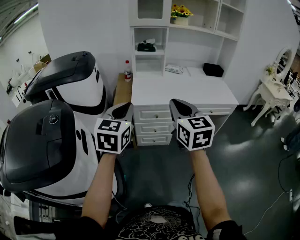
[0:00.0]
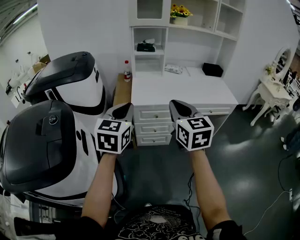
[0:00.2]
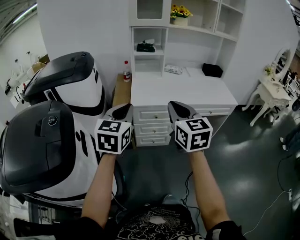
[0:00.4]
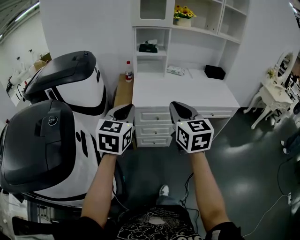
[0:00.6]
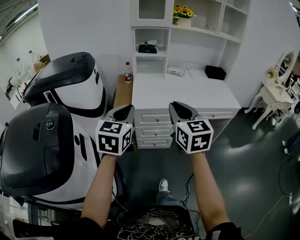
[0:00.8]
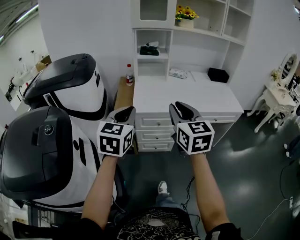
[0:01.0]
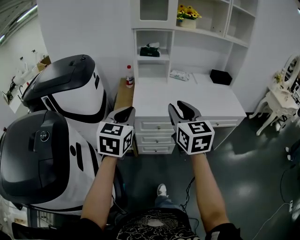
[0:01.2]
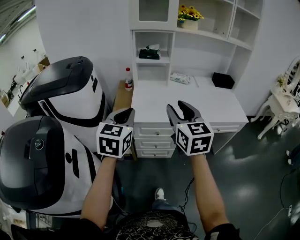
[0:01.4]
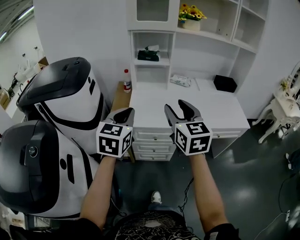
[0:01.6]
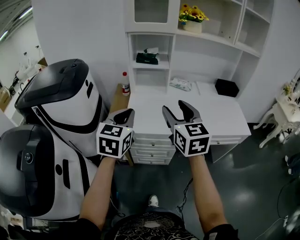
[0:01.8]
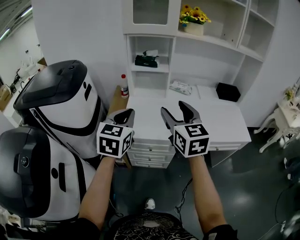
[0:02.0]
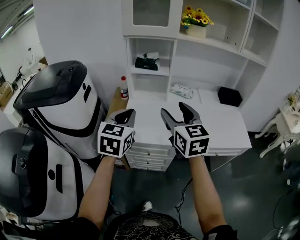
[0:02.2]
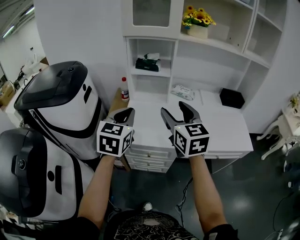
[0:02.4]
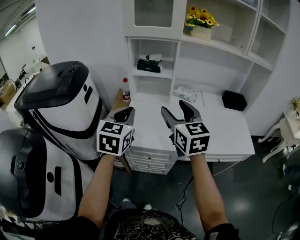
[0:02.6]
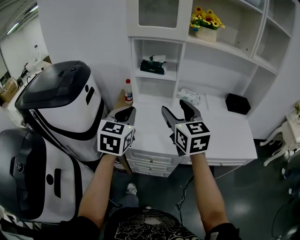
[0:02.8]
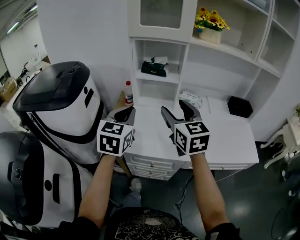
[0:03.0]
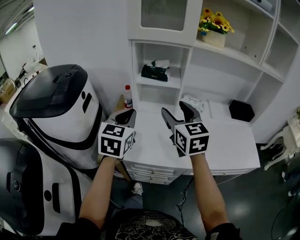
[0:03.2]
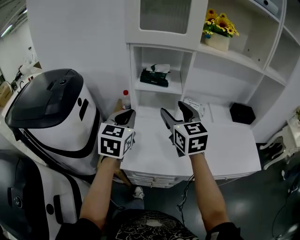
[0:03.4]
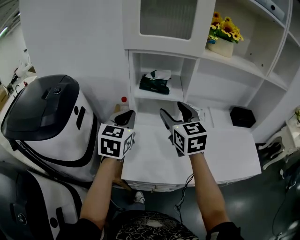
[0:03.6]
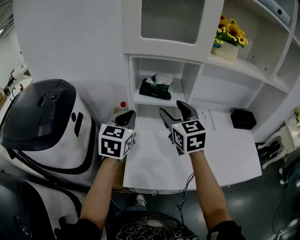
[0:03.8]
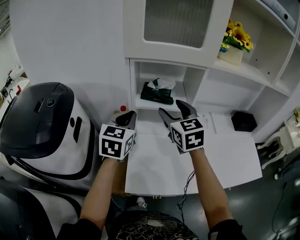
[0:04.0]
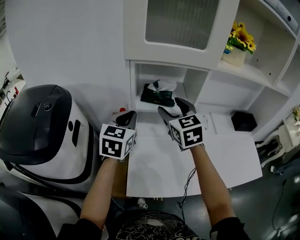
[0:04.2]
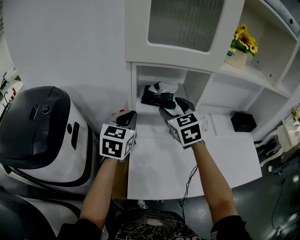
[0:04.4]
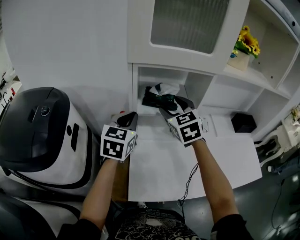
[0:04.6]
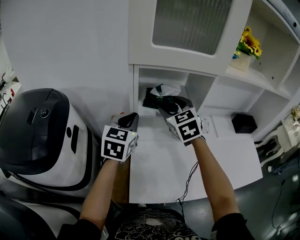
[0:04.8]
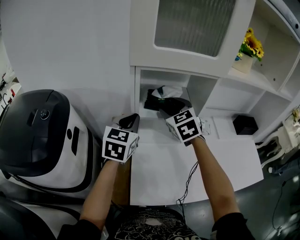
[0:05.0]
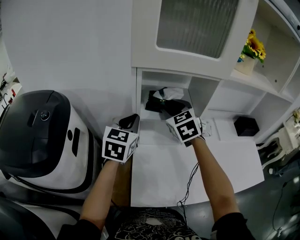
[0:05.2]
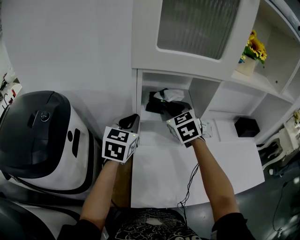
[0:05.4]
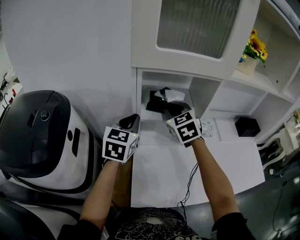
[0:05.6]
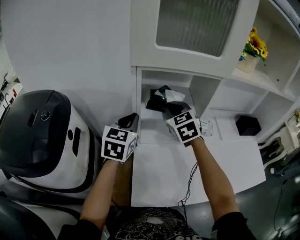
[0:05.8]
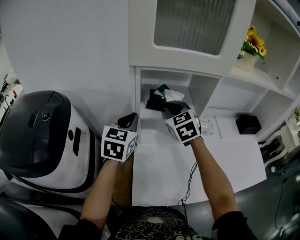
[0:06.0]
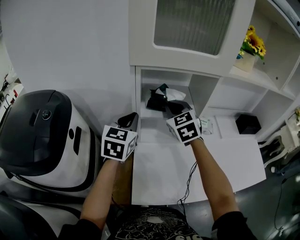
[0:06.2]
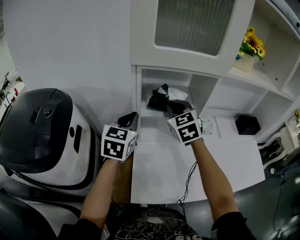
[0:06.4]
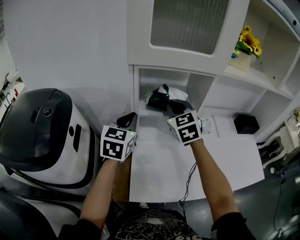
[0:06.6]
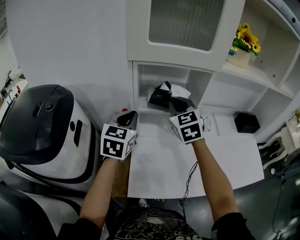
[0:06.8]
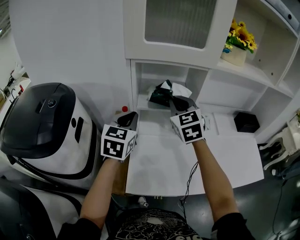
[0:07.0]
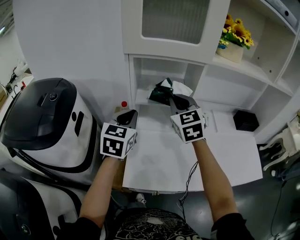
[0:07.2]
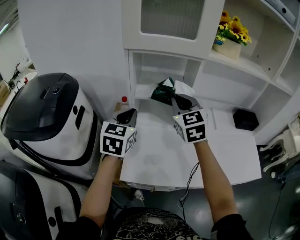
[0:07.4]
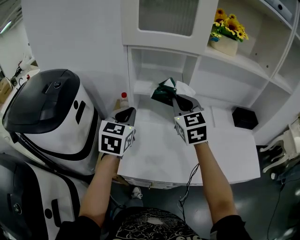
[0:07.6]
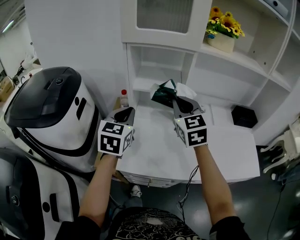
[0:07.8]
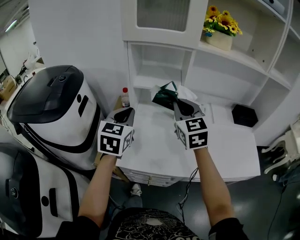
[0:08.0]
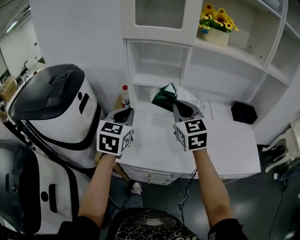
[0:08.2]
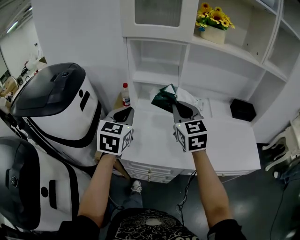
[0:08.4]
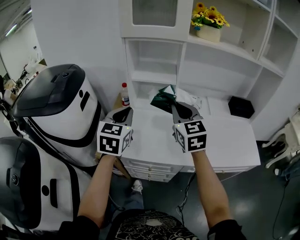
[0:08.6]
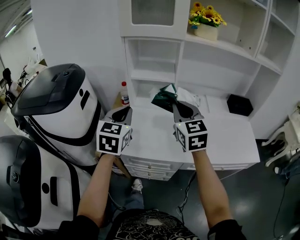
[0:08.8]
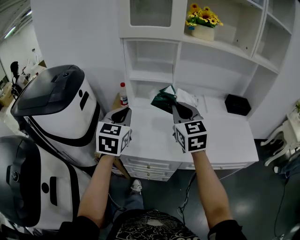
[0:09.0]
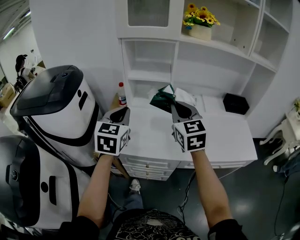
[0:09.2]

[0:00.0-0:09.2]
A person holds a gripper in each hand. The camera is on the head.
0:00.0 to 0:01.6: Both grippers move forward, about 20 cm. The right gripper opens its fingers.
0:01.6 to 0:03.0: The grippers both shift forward by some 20 cm.
0:03.0 to 0:04.6: Both grippers travel together forward, roughly 30 cm. The right gripper turns by some 20 degrees.
0:04.6 to 0:06.2: The right gripper closes.
0:06.2 to 0:07.6: The left gripper shifts some 15 cm backward; the right gripper shifts some 15 cm backward and to the right.
0:07.6 to 0:09.2: The grippers both shift backward by about 15 cm.

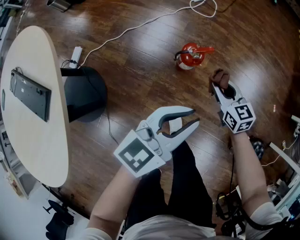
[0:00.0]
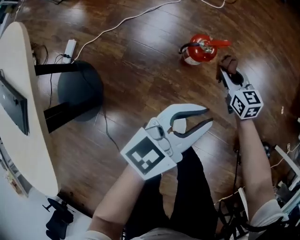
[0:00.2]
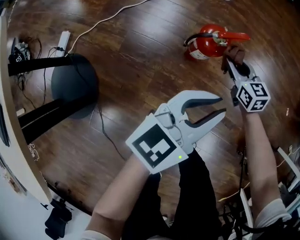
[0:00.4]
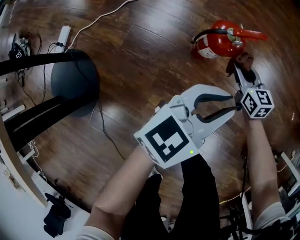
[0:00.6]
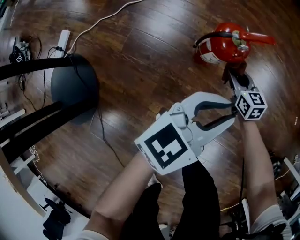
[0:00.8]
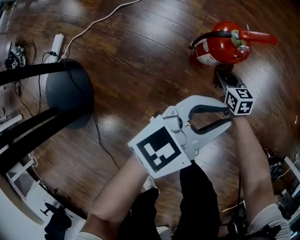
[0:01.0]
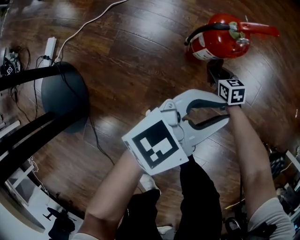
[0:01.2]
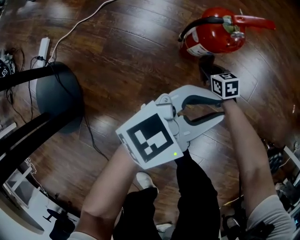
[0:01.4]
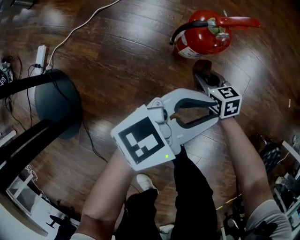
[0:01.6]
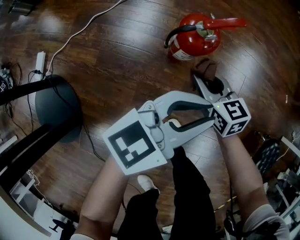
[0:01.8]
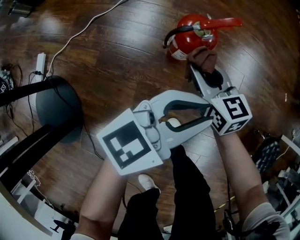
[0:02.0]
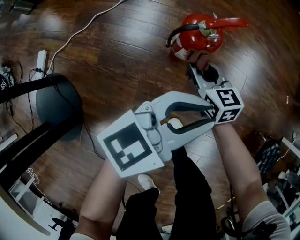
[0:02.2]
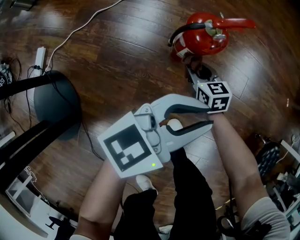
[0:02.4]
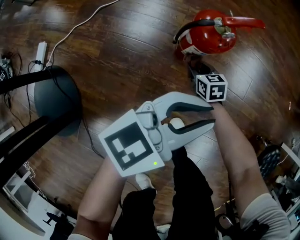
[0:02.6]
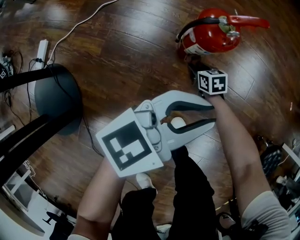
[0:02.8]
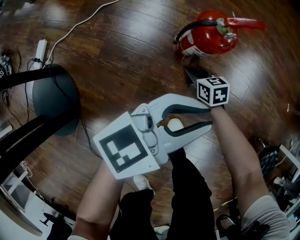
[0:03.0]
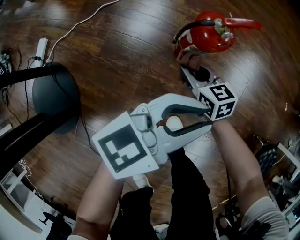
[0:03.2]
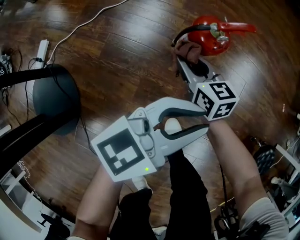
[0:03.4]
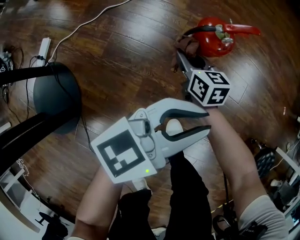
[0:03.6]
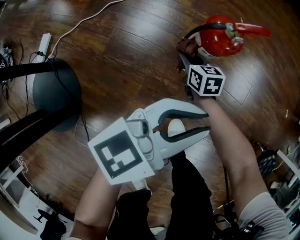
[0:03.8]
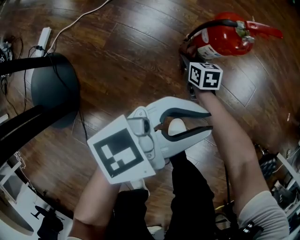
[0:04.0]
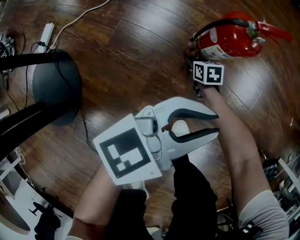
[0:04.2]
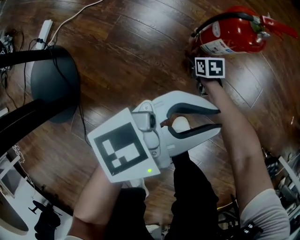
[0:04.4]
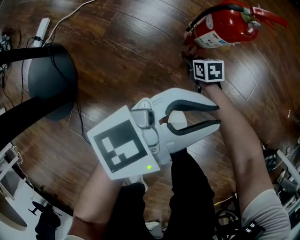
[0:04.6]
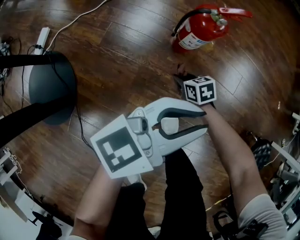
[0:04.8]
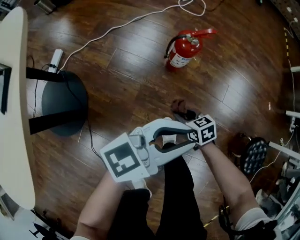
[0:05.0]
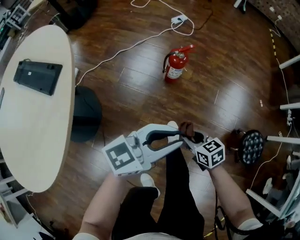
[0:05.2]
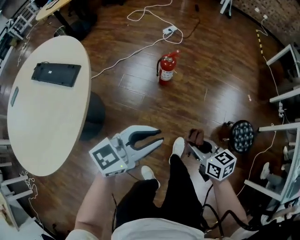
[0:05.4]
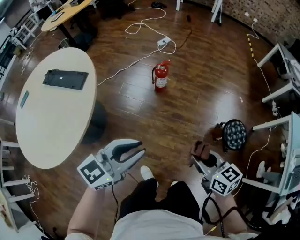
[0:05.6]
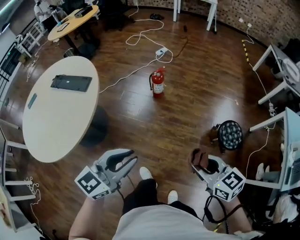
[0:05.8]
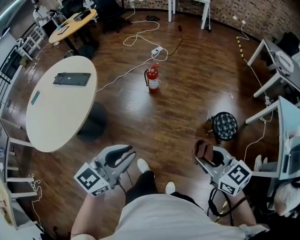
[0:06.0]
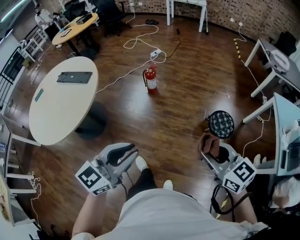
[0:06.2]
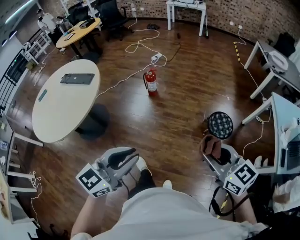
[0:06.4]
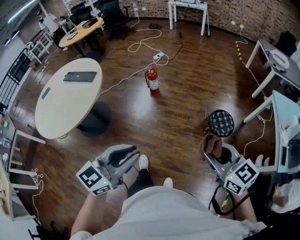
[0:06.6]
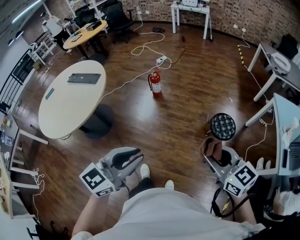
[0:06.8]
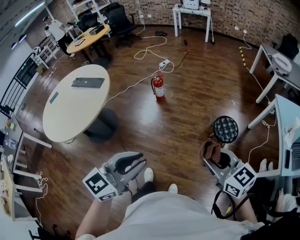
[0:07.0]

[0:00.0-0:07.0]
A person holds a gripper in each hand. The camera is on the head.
0:00.0 to 0:01.4: The left gripper goes about 25 cm downward; the right gripper heads downward, covering approximately 40 cm, and rotates roughly 20 degrees.
0:01.4 to 0:02.8: The right gripper goes upward and returns, approximately 25 cm each way.
0:02.8 to 0:04.2: The right gripper heads to the left, covering approximately 5 cm, and goes upward and returns, roughly 20 cm each way.
0:04.2 to 0:05.6: The right gripper goes some 70 cm upward, and changes its angle by some 30 degrees, while the left gripper is displaced upward by roughly 40 cm.
0:05.6 to 0:07.0: The right gripper is displaced backward, upward and to the right by about 35 cm, and turns by some 20 degrees, while the left gripper goes about 35 cm backward, to the right and upward.

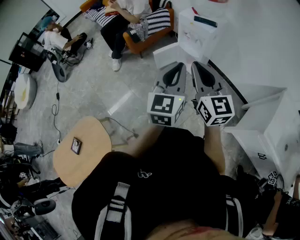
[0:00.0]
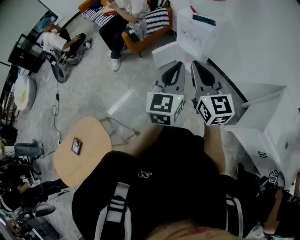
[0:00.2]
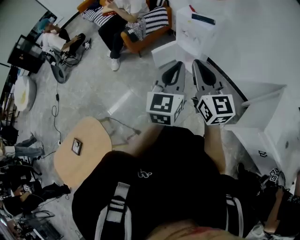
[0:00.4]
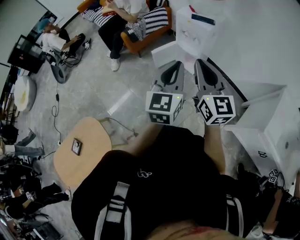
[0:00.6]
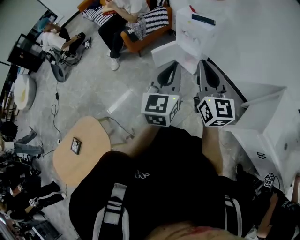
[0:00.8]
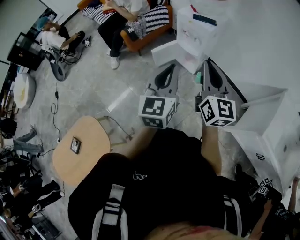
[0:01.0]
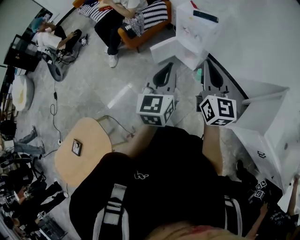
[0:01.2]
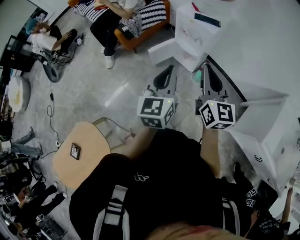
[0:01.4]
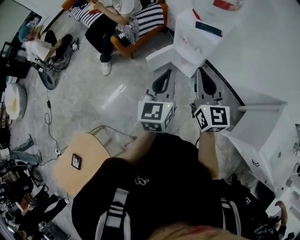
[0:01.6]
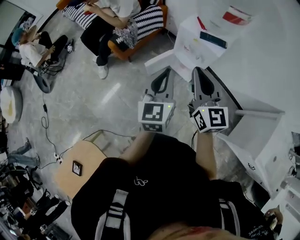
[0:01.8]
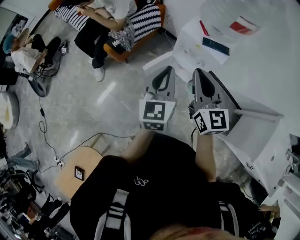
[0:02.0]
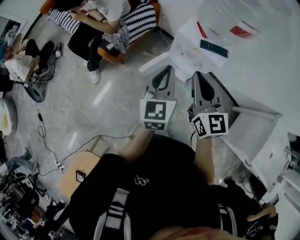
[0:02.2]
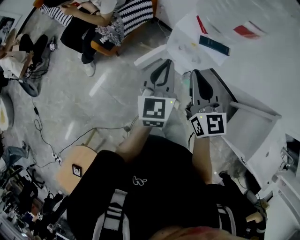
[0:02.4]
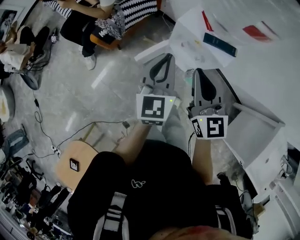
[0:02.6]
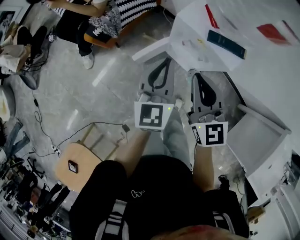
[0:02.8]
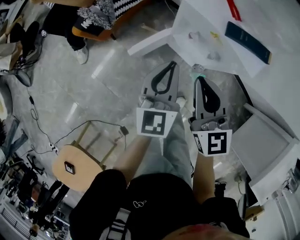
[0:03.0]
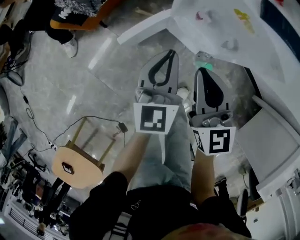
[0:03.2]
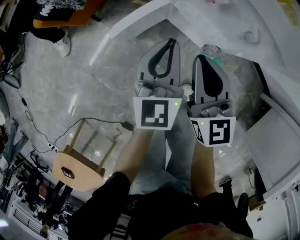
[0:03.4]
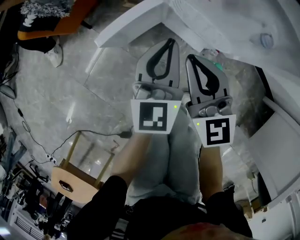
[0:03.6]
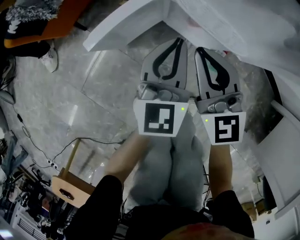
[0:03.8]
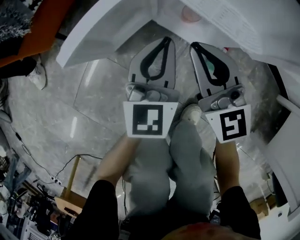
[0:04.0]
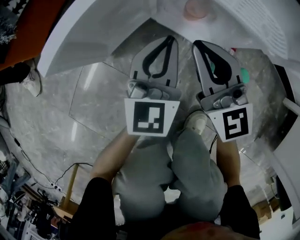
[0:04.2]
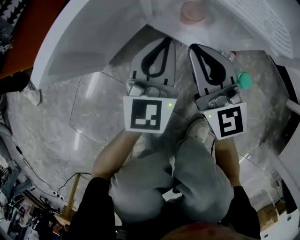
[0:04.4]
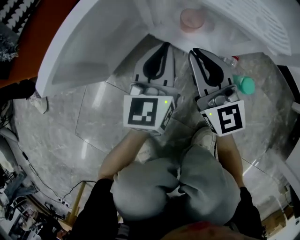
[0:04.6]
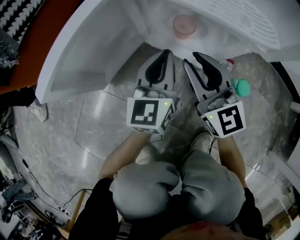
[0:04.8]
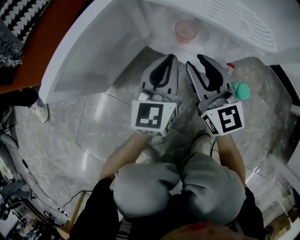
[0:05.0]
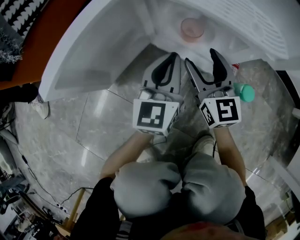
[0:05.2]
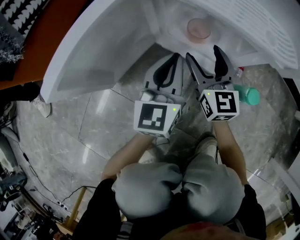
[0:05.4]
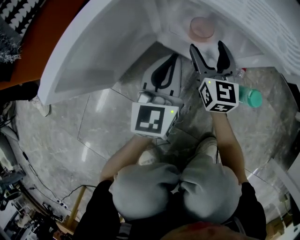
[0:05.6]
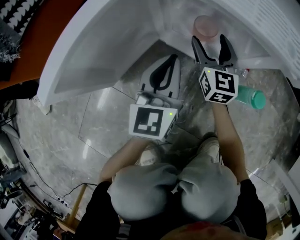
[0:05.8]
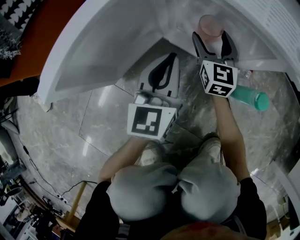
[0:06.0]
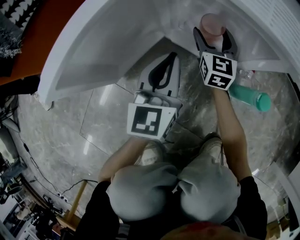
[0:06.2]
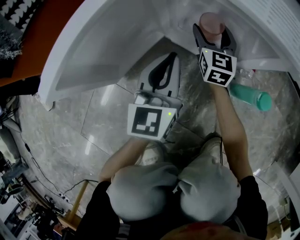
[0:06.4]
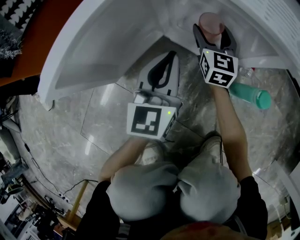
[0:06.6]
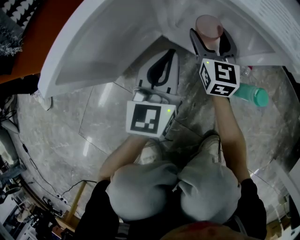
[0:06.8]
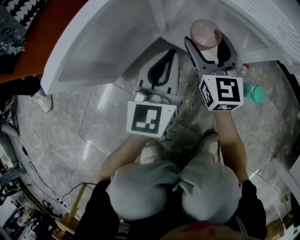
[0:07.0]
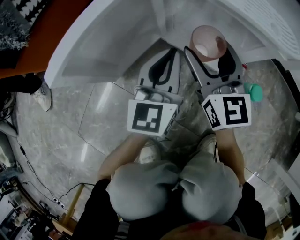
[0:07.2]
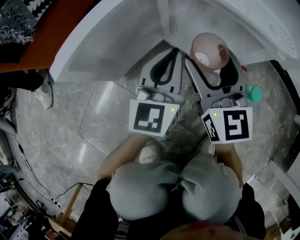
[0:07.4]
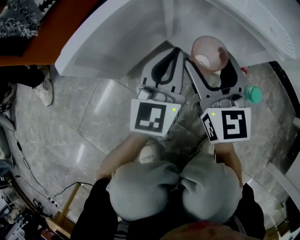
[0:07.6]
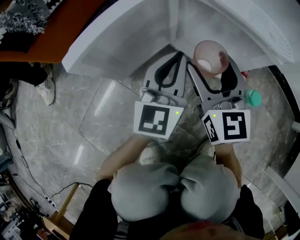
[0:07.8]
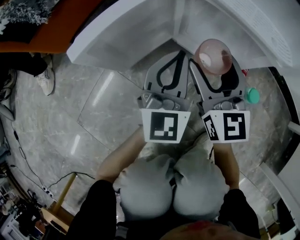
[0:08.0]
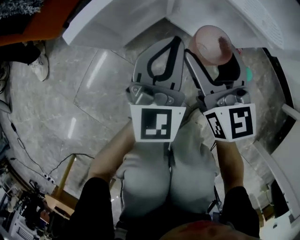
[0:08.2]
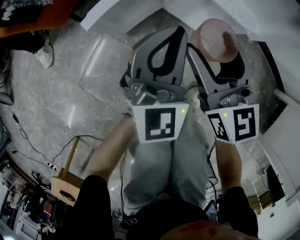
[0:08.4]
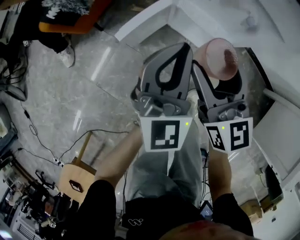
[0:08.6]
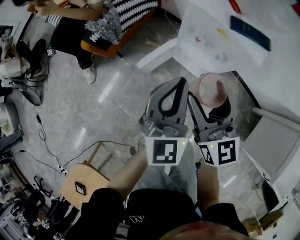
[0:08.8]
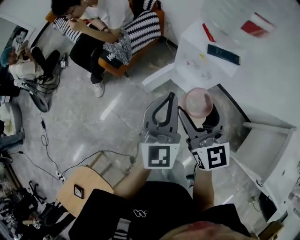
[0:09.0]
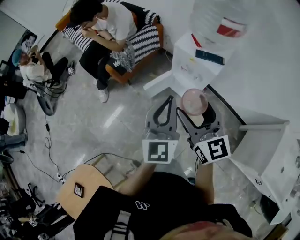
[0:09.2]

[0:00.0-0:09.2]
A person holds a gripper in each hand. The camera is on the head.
0:00.0 to 0:01.6: Both grippers travel together forward, approximately 20 cm.
0:01.6 to 0:03.0: The two grippers go roughly 35 cm forward and downward.
0:03.0 to 0:04.6: The grippers both shift downward by roughly 50 cm.
0:04.6 to 0:06.2: The right gripper is displaced forward and downward by roughly 20 cm, swivels some 30 degrees, and opens up; the left gripper shifts by approximately 5 cm.
0:06.2 to 0:07.6: The left gripper travels upward by about 5 cm, while the right gripper moves upward and backward, approximately 25 cm.
0:07.6 to 0:09.2: Both grippers move upward, some 80 cm.
